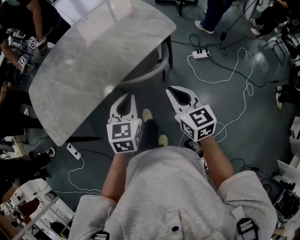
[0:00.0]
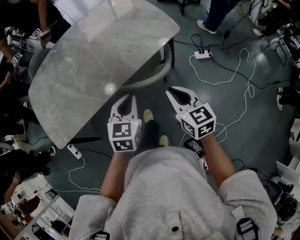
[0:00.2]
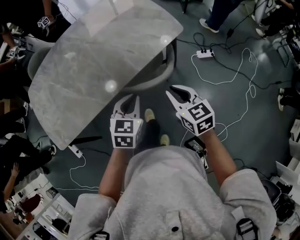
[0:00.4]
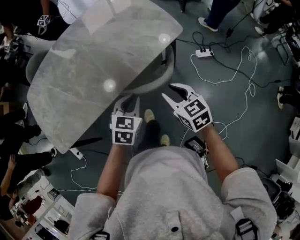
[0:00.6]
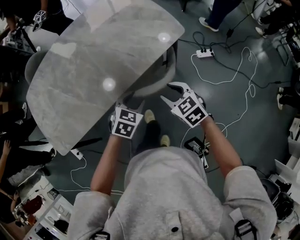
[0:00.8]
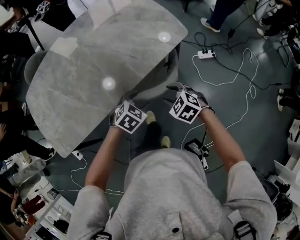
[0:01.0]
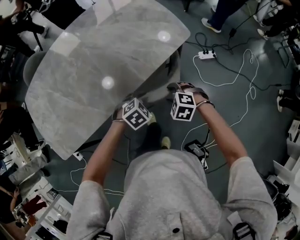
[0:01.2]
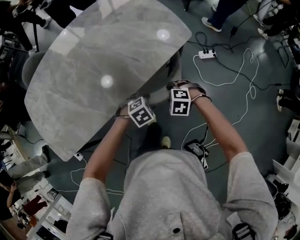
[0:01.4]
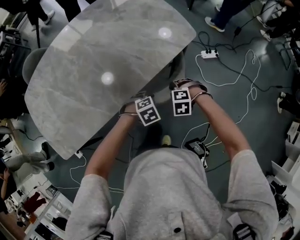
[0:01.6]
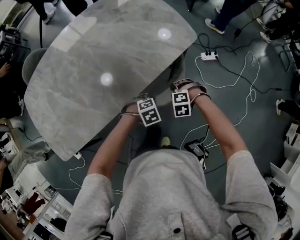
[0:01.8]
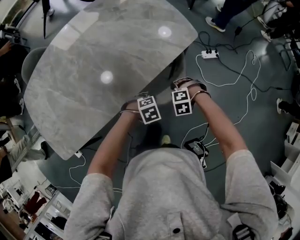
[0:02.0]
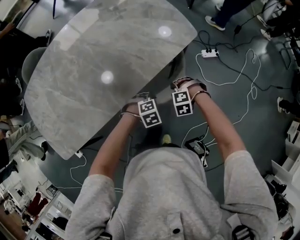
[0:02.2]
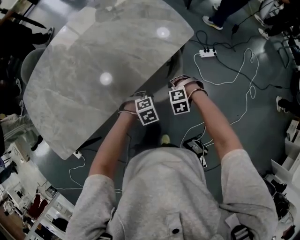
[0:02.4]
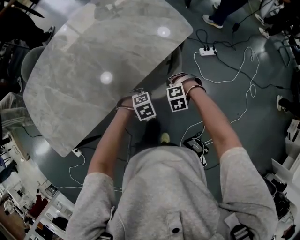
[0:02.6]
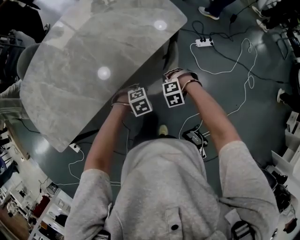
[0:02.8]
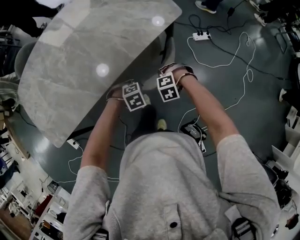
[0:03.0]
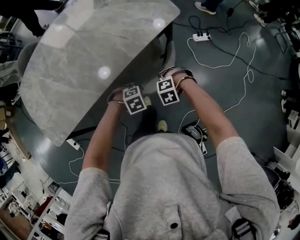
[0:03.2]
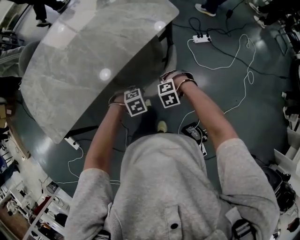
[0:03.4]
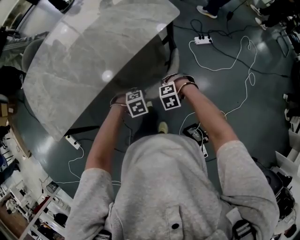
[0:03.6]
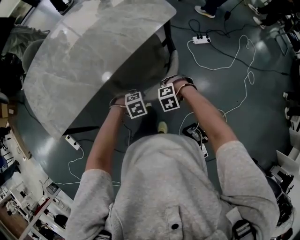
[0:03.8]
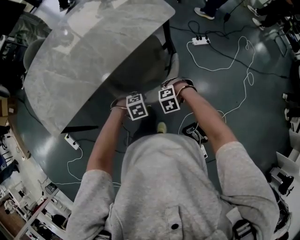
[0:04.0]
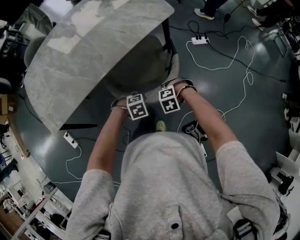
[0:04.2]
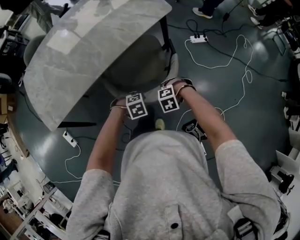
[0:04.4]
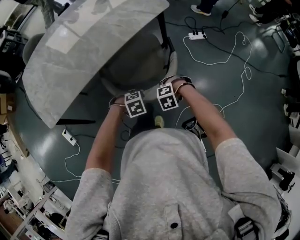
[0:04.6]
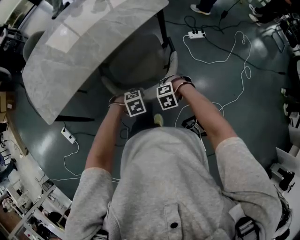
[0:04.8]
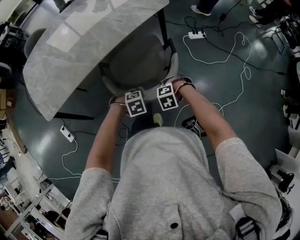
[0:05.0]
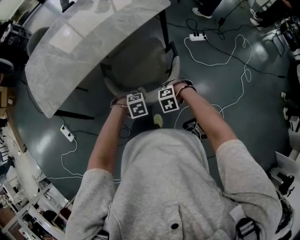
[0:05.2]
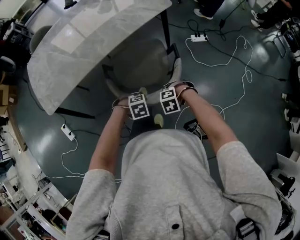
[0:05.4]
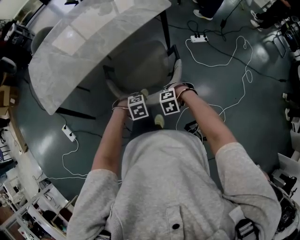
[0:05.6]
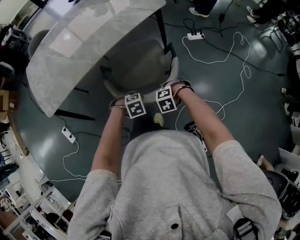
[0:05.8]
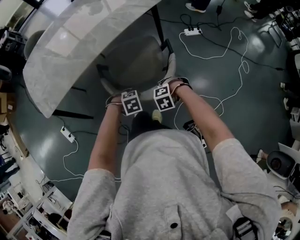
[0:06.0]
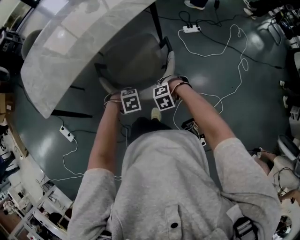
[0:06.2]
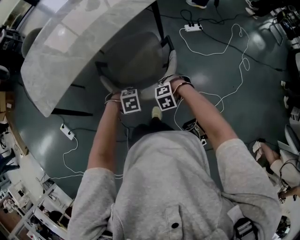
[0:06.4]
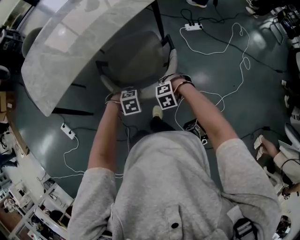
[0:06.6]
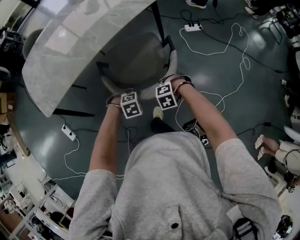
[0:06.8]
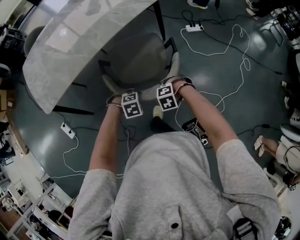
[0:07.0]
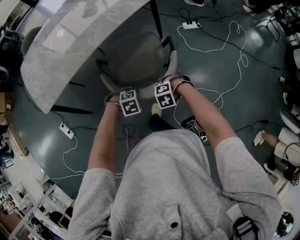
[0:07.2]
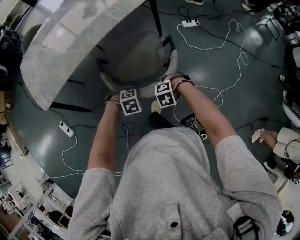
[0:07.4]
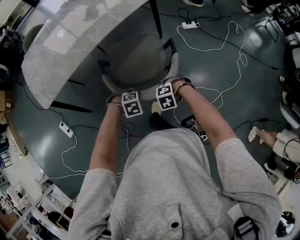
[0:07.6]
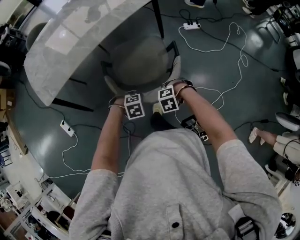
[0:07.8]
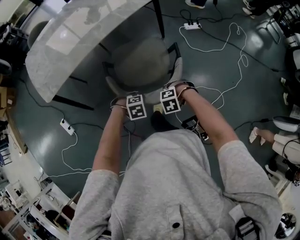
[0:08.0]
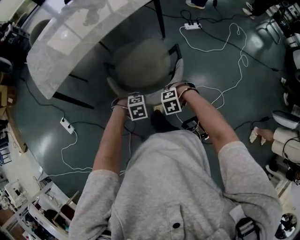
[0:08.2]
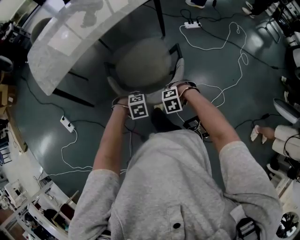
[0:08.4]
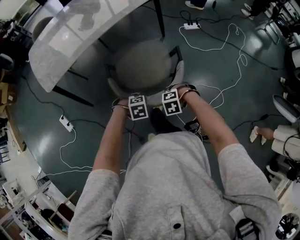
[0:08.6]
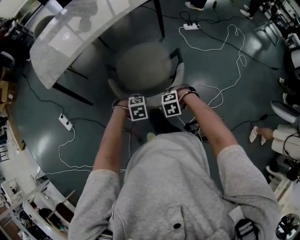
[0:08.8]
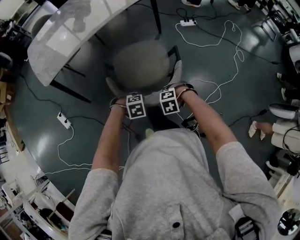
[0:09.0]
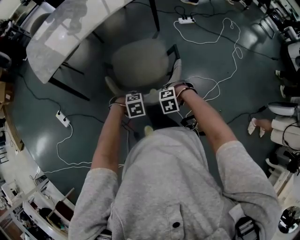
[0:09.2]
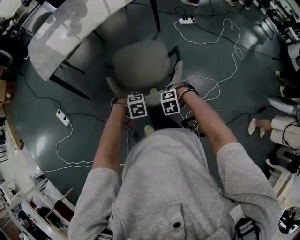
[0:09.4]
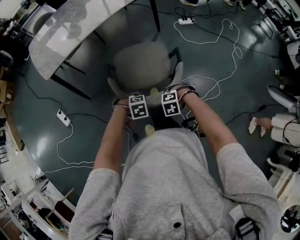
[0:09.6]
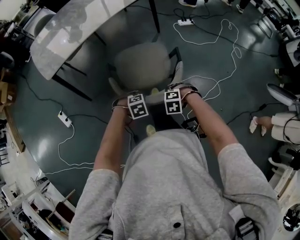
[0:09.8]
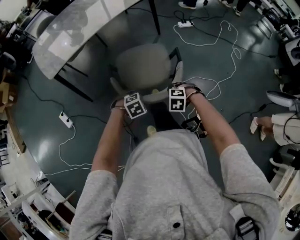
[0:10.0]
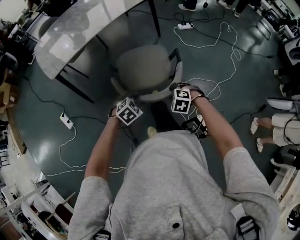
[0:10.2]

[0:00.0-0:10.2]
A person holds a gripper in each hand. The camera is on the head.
0:00.0 to 0:01.4: The grippers both shift downward by some 20 cm. The left gripper angles its fingers downward, by about 40 degrees, and opens. Meanwhile the right gripper points its fingers about 50 degrees further downward, and opens up.
0:01.4 to 0:03.0: The right gripper changes place by approximately 5 cm, changes its angle by roughly 20 degrees, and closes up; the left gripper shifts by some 5 cm, and closes its fingers.
0:03.0 to 0:04.4: The right gripper moves about 20 cm. The left gripper moves some 15 cm.
0:04.4 to 0:05.8: The right gripper changes place by approximately 10 cm, while the left gripper moves roughly 10 cm.
0:05.8 to 0:07.2: The left gripper opens, then closes once more.
0:07.2 to 0:08.8: The right gripper shifts by roughly 20 cm. Meanwhile the left gripper moves some 20 cm.
0:08.8 to 0:10.2: The right gripper shifts by some 10 cm, and rotates about 30 degrees. Meanwhile the left gripper ends up roughly 10 cm from where it was, and turns by about 30 degrees.

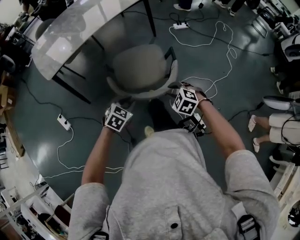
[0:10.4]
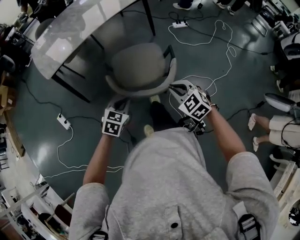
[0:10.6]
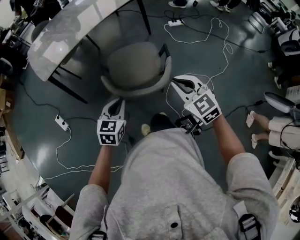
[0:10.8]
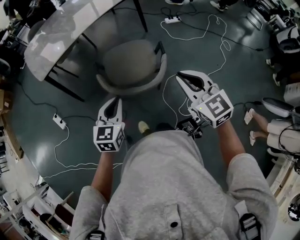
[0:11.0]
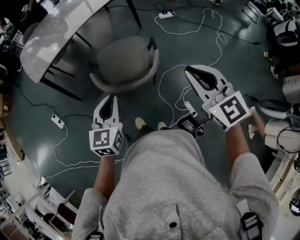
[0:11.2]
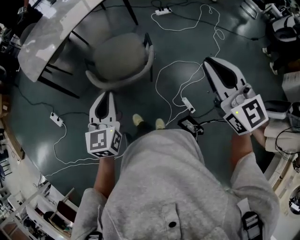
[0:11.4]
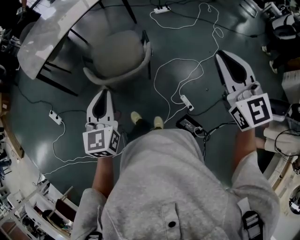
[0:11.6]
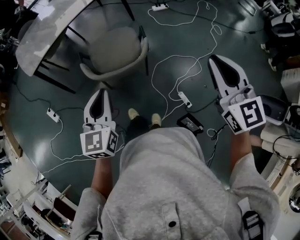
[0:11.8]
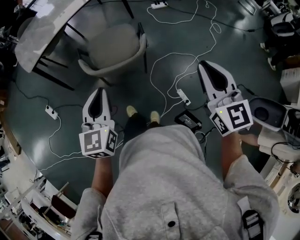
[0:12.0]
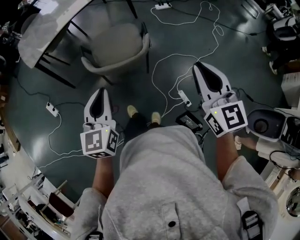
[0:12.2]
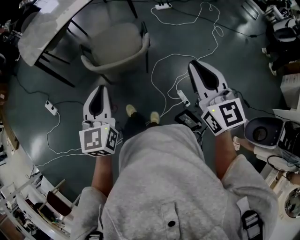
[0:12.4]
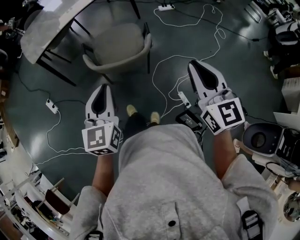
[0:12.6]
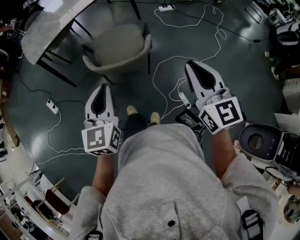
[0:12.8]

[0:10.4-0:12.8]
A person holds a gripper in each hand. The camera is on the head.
0:10.4 to 0:11.6: The left gripper moves upward, roughly 25 cm, and tilts its fingers roughly 30 degrees upward; the right gripper travels upward and to the right by roughly 40 cm, points its fingers some 50 degrees further upward, and closes its fingers.
0:11.6 to 0:12.8: The left gripper changes place by about 5 cm. Meanwhile the right gripper moves downward, some 5 cm.

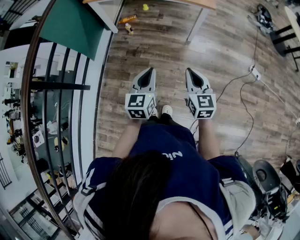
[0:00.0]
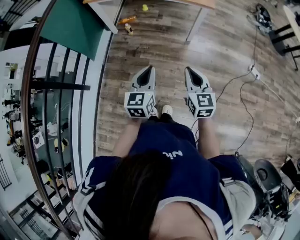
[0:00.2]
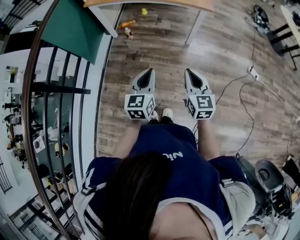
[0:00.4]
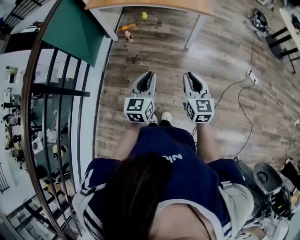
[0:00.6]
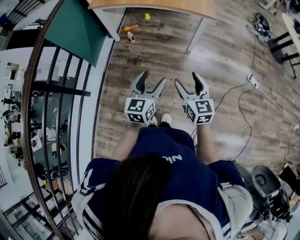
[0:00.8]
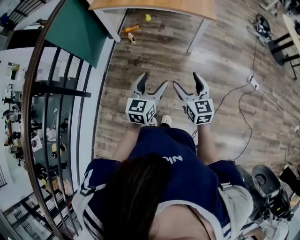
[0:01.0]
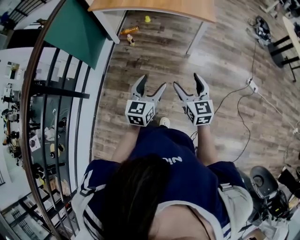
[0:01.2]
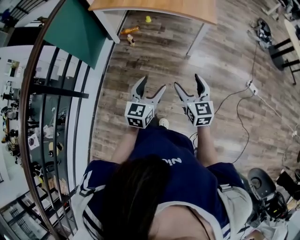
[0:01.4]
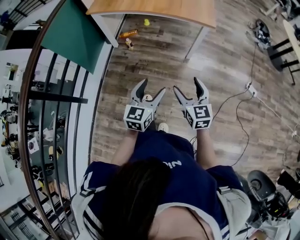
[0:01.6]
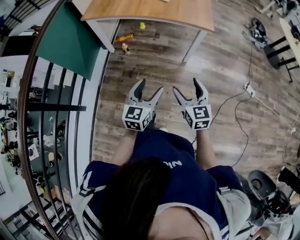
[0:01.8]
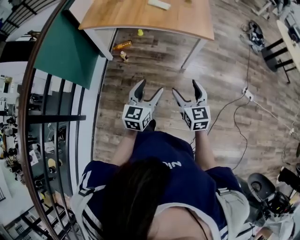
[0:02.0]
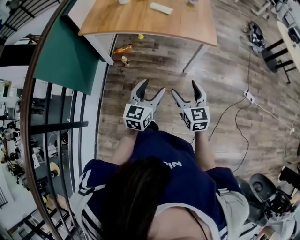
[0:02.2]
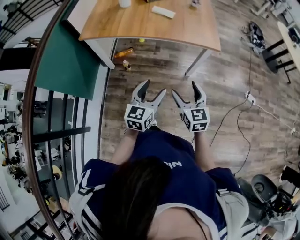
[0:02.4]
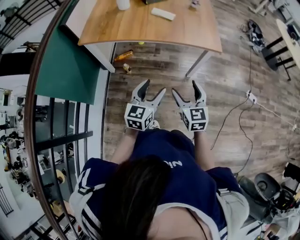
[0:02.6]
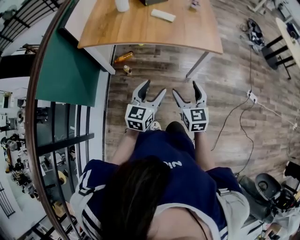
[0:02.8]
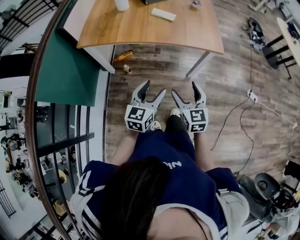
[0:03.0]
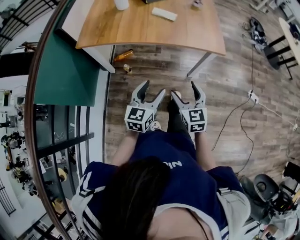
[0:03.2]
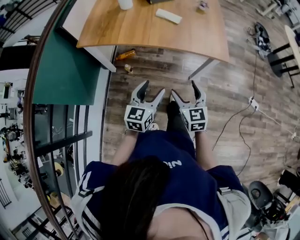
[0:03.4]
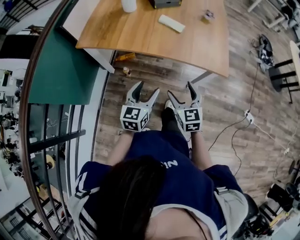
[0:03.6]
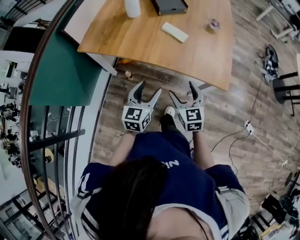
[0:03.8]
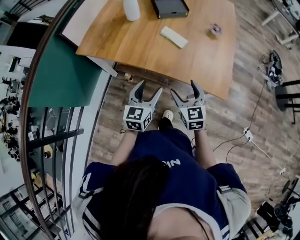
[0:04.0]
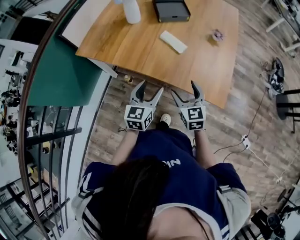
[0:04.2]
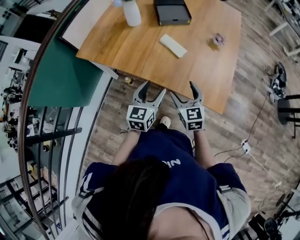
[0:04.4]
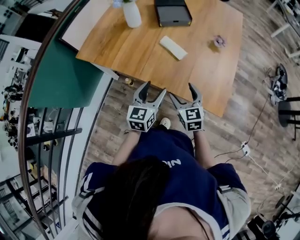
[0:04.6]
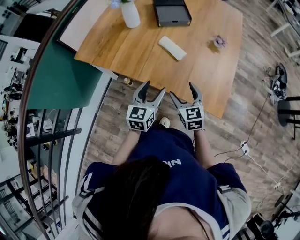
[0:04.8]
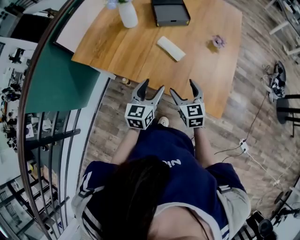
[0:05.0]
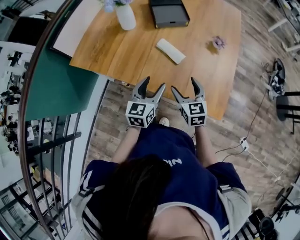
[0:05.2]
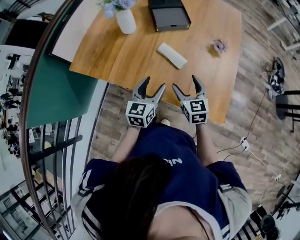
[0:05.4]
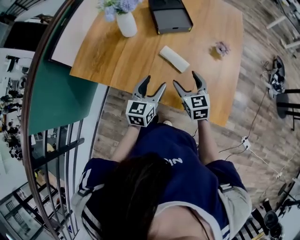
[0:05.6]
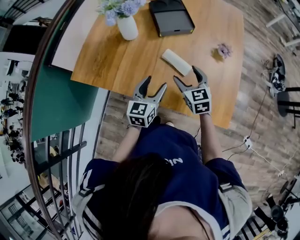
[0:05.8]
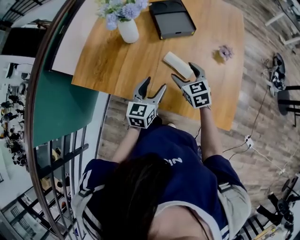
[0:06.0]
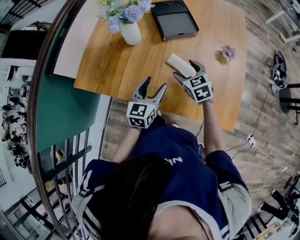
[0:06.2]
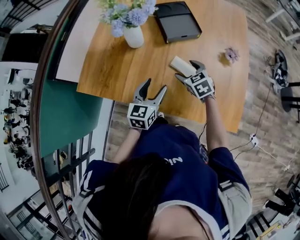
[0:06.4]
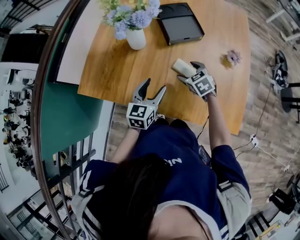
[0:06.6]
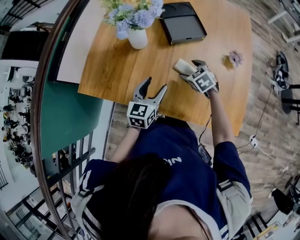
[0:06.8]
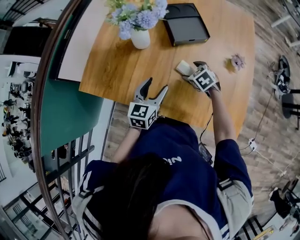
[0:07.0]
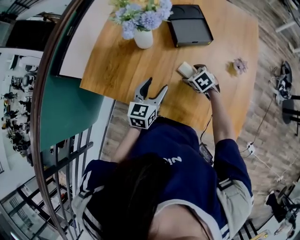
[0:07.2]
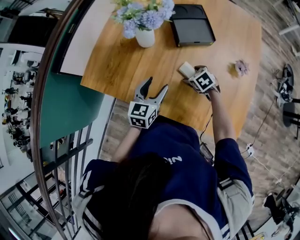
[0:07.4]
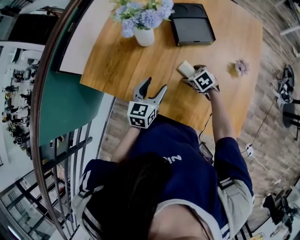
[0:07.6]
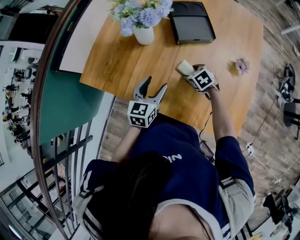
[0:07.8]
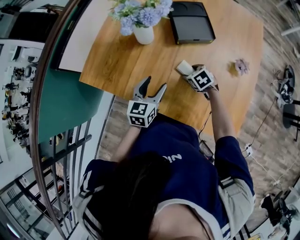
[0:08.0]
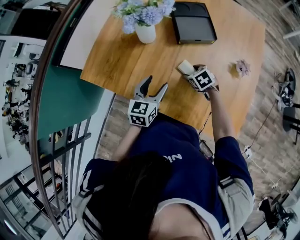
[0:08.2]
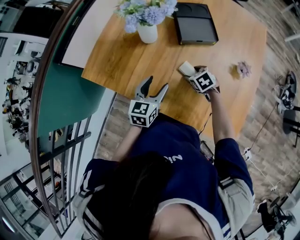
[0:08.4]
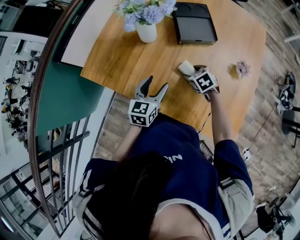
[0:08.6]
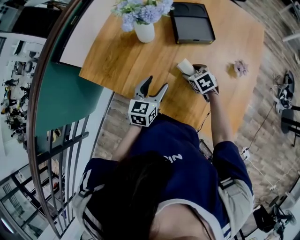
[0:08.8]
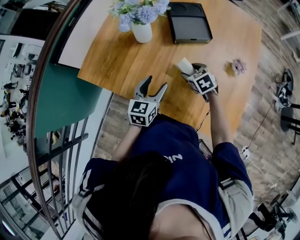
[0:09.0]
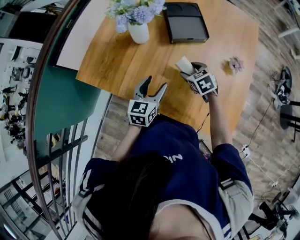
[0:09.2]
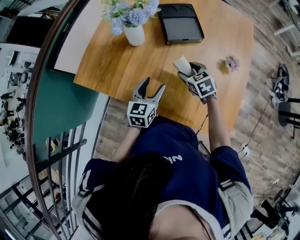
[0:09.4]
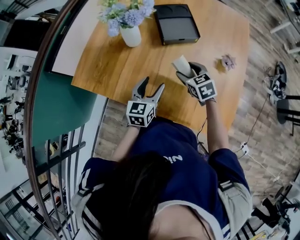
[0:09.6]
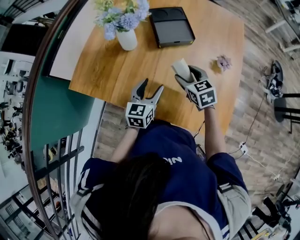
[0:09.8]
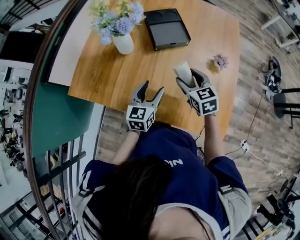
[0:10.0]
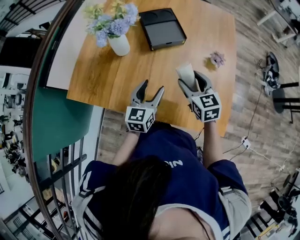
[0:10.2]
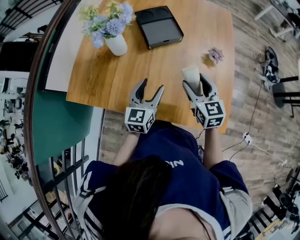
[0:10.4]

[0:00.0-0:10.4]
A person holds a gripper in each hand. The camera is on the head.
0:00.0 to 0:01.4: The right gripper opens. The left gripper opens up.
0:01.4 to 0:03.0: The left gripper shifts approximately 30 cm forward. The right gripper heads forward and to the left, covering about 25 cm.
0:03.0 to 0:04.4: The two grippers go about 30 cm forward. The left gripper turns by roughly 20 degrees. Meanwhile the right gripper changes its angle by roughly 20 degrees.
0:04.4 to 0:06.0: The grippers both shift forward by approximately 20 cm.
0:06.0 to 0:07.4: The left gripper shifts some 5 cm forward. Meanwhile the right gripper goes roughly 15 cm downward and forward, and turns by some 30 degrees.
0:07.4 to 0:09.0: The grippers make only small movements.
0:09.0 to 0:10.4: The right gripper shifts roughly 20 cm upward, backward and to the right, and angles its fingers upward, by some 30 degrees; the left gripper is displaced to the right by about 5 cm.
